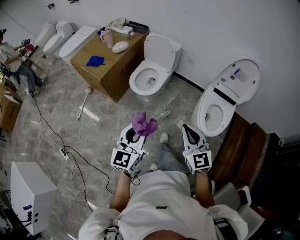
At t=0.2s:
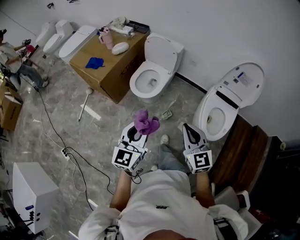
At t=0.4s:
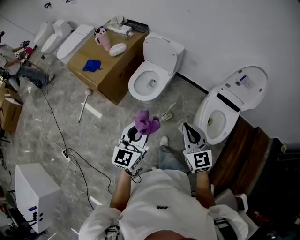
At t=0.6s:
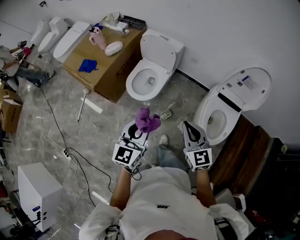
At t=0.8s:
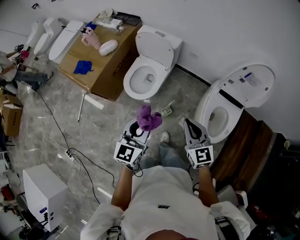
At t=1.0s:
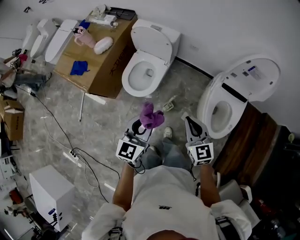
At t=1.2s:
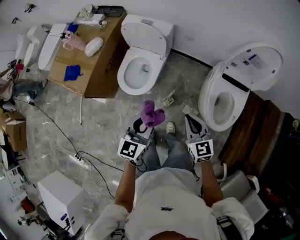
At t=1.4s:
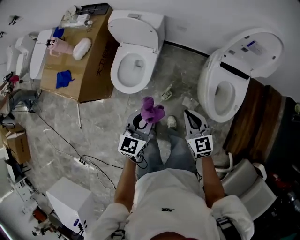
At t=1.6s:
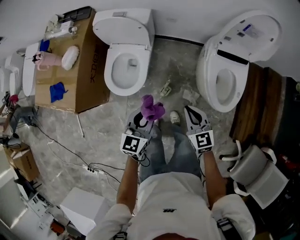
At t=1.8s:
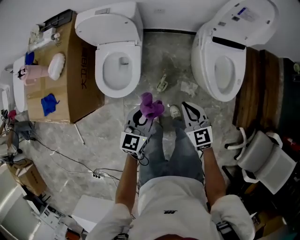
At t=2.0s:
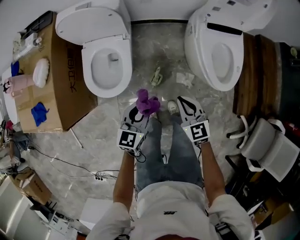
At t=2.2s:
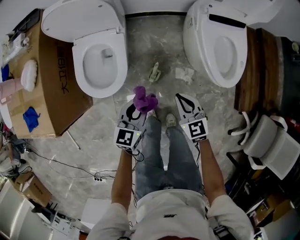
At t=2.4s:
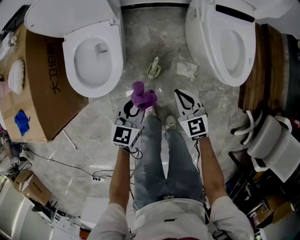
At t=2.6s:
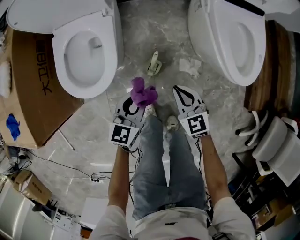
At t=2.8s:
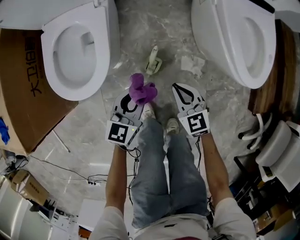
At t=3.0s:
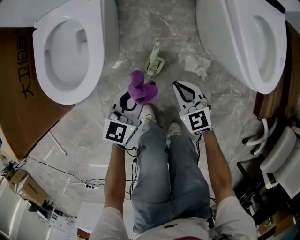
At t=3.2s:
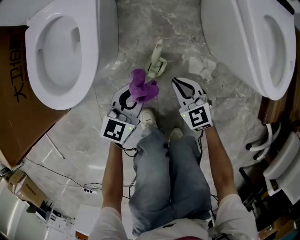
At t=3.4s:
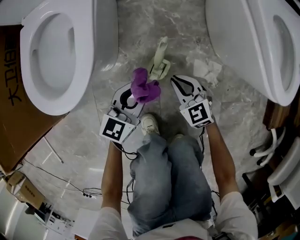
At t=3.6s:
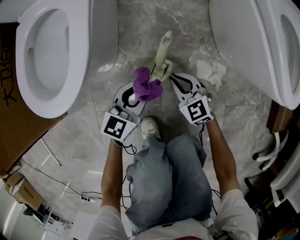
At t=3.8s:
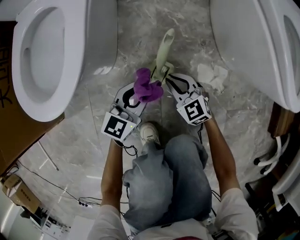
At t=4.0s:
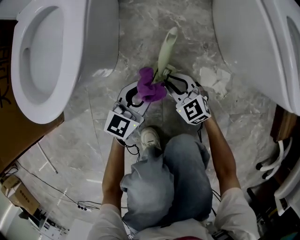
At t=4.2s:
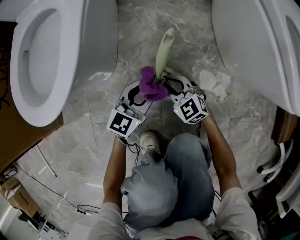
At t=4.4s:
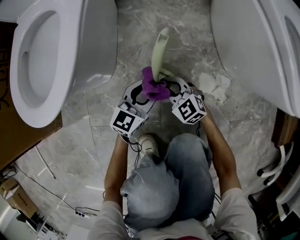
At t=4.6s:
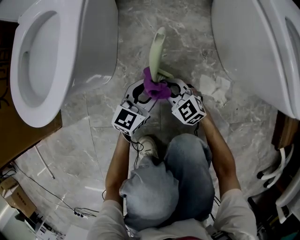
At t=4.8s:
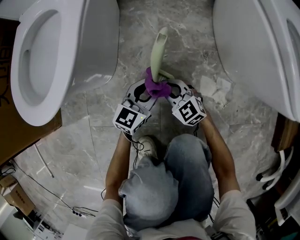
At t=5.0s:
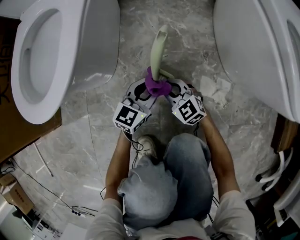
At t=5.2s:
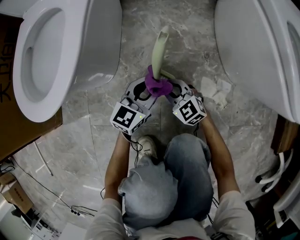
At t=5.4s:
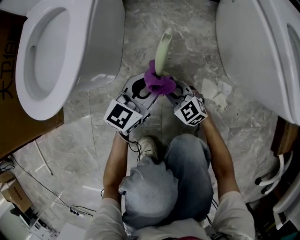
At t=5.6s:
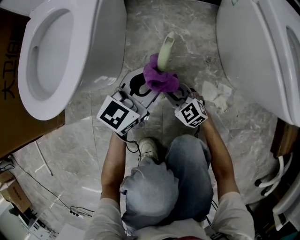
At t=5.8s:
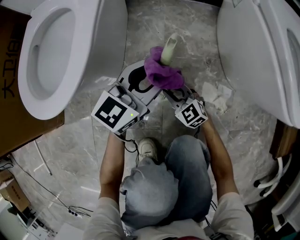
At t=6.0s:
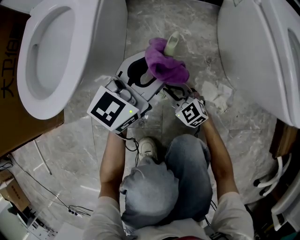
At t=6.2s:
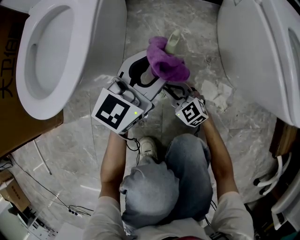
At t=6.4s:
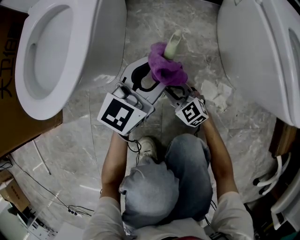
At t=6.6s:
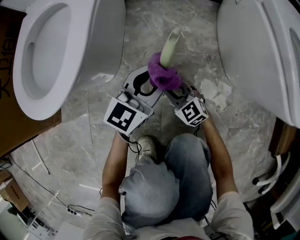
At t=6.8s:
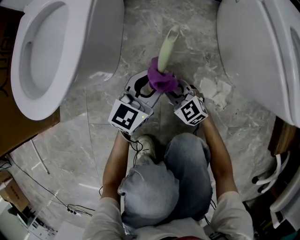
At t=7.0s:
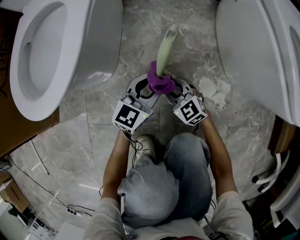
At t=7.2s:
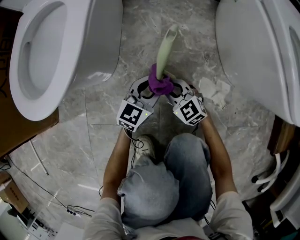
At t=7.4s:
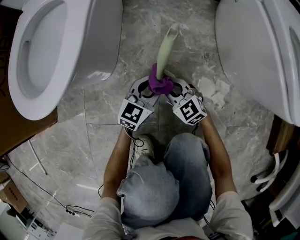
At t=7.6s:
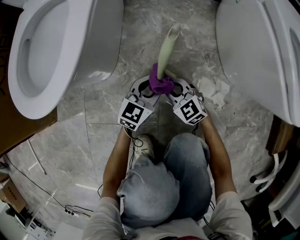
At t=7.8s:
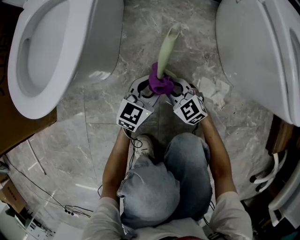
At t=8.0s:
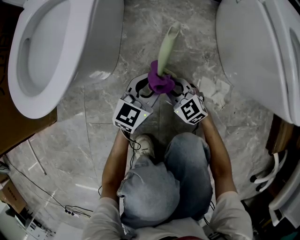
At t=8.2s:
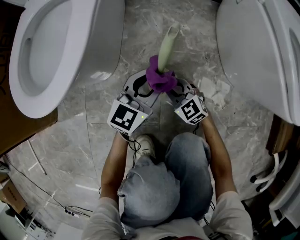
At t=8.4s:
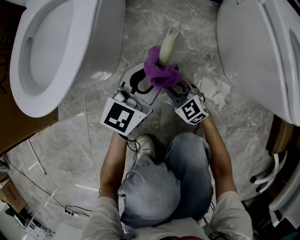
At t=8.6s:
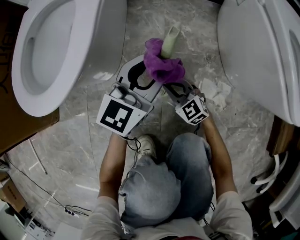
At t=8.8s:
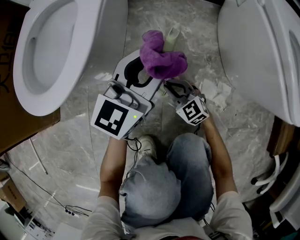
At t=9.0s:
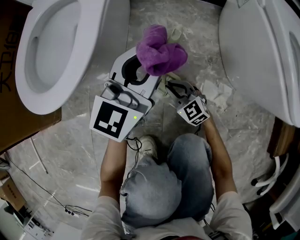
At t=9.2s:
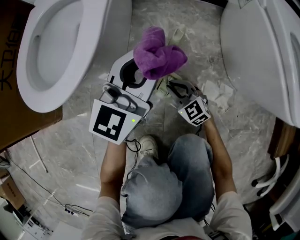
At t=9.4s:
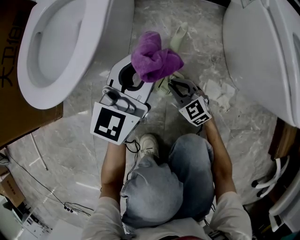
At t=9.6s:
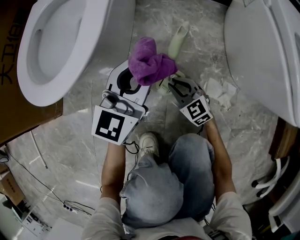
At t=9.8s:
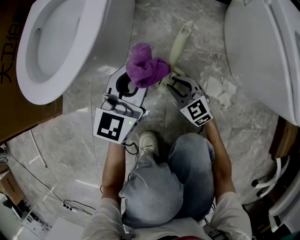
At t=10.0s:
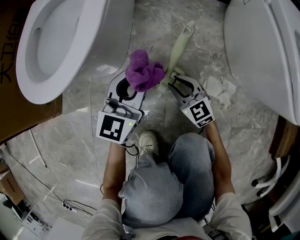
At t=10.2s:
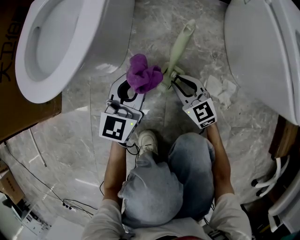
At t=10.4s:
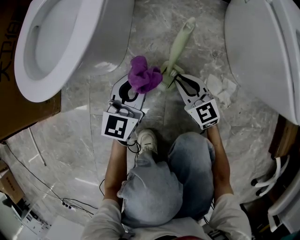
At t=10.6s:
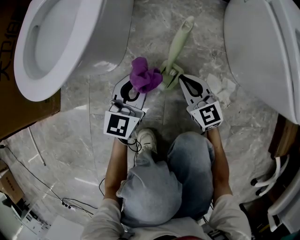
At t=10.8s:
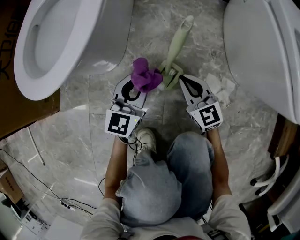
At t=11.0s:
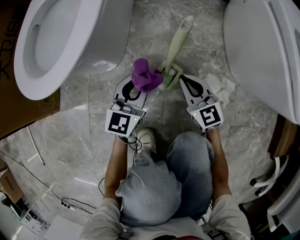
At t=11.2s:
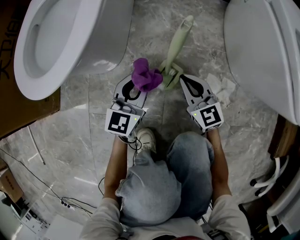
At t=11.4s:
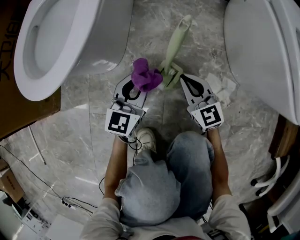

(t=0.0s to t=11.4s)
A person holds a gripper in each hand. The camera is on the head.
t=0.0s - t=1.4s: The grippers both shift forward and downward by roughly 35 cm. The right gripper turns by about 20 degrees. Meanwhile the left gripper turns by approximately 20 degrees.
t=1.4s - t=2.8s: Both grippers travel together downward, about 50 cm.
t=2.8s - t=4.2s: Both grippers travel together downward, roughly 30 cm. The right gripper changes its angle by about 20 degrees.
t=4.2s - t=5.6s: The left gripper shifts some 10 cm upward.
t=5.6s - t=7.2s: The left gripper heads downward, covering about 15 cm.
t=7.2s - t=8.6s: The left gripper heads upward, covering some 15 cm.
t=8.6s - t=10.0s: The left gripper is displaced to the left by roughly 5 cm.
t=10.0s - t=11.4s: The right gripper ends up approximately 5 cm from where it was, and closes up; the left gripper shifts about 5 cm downward.

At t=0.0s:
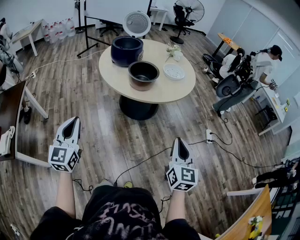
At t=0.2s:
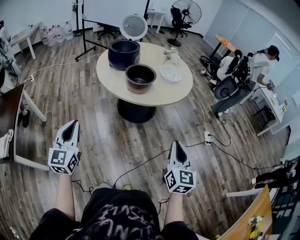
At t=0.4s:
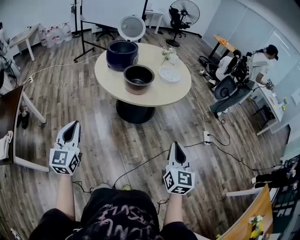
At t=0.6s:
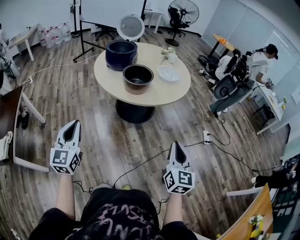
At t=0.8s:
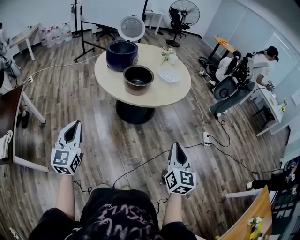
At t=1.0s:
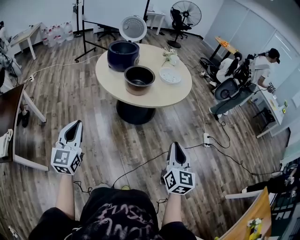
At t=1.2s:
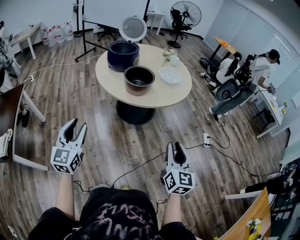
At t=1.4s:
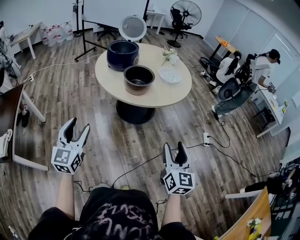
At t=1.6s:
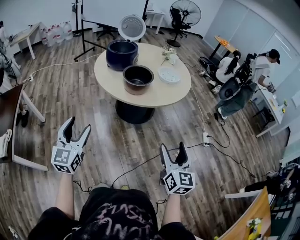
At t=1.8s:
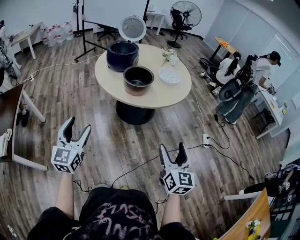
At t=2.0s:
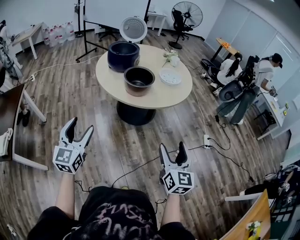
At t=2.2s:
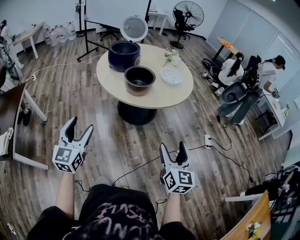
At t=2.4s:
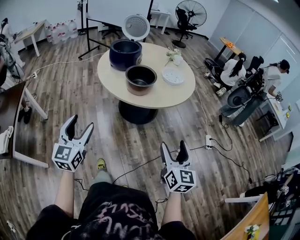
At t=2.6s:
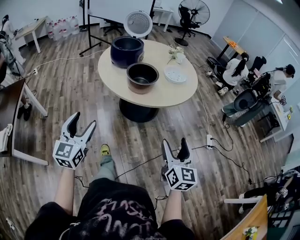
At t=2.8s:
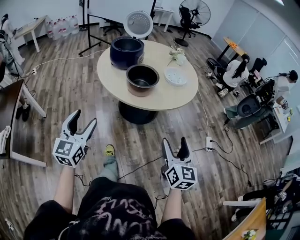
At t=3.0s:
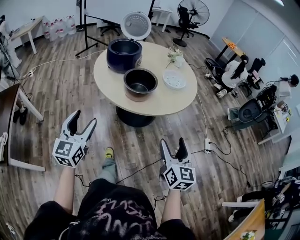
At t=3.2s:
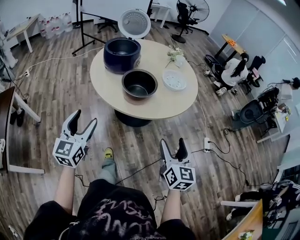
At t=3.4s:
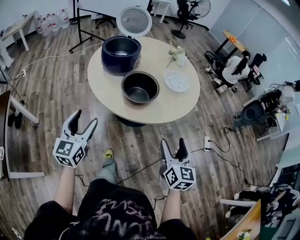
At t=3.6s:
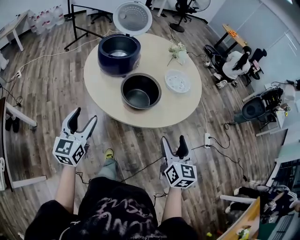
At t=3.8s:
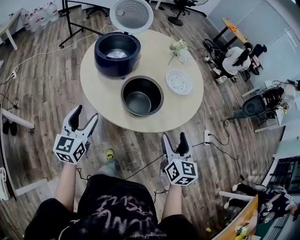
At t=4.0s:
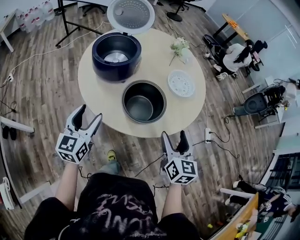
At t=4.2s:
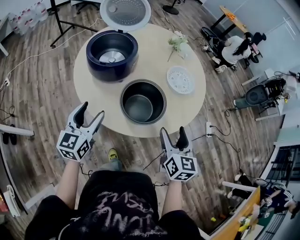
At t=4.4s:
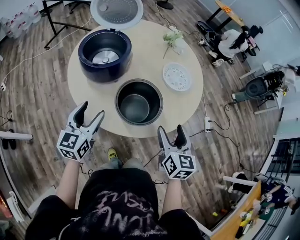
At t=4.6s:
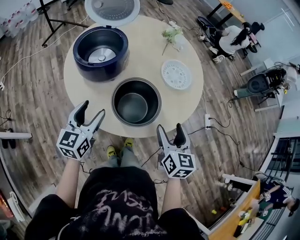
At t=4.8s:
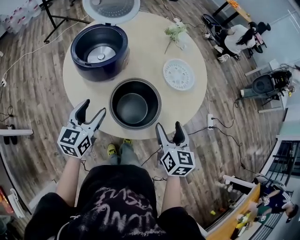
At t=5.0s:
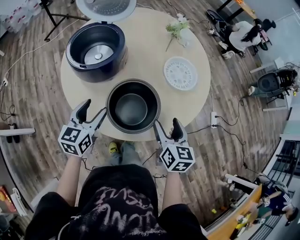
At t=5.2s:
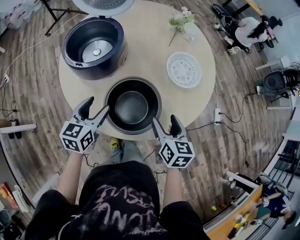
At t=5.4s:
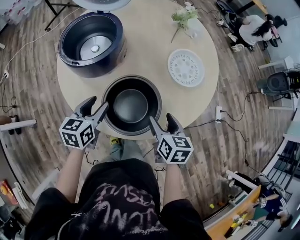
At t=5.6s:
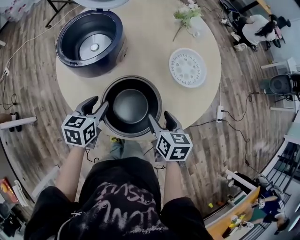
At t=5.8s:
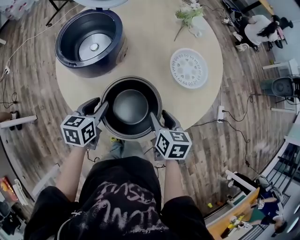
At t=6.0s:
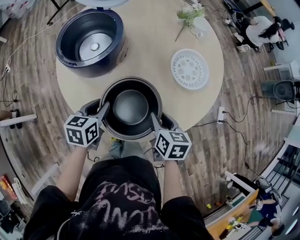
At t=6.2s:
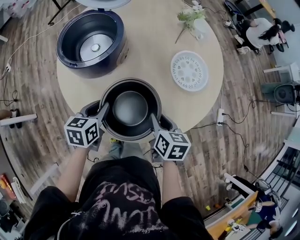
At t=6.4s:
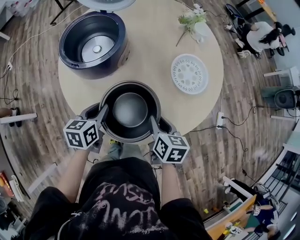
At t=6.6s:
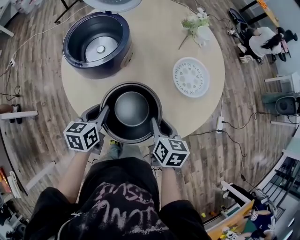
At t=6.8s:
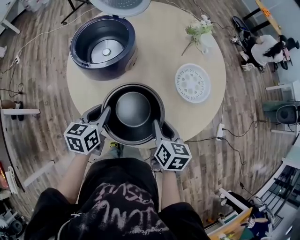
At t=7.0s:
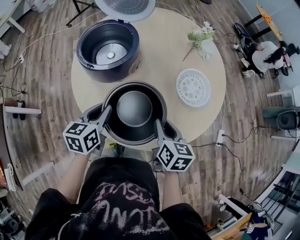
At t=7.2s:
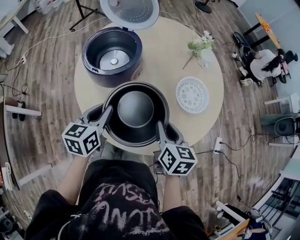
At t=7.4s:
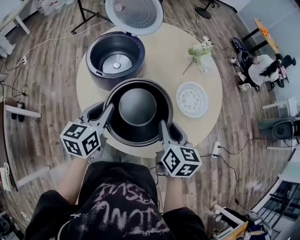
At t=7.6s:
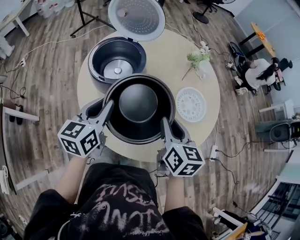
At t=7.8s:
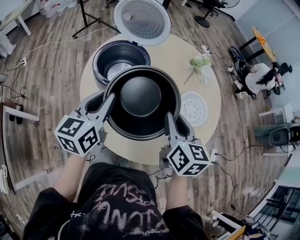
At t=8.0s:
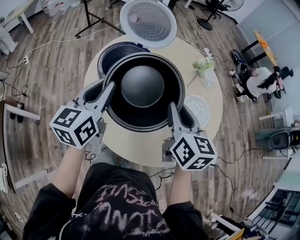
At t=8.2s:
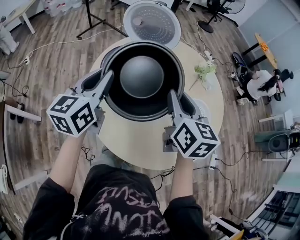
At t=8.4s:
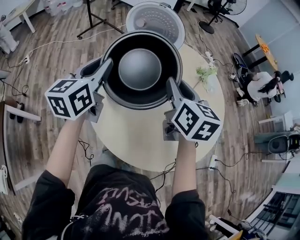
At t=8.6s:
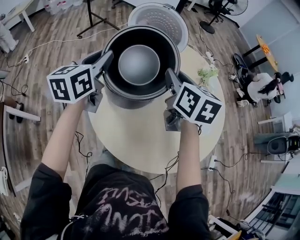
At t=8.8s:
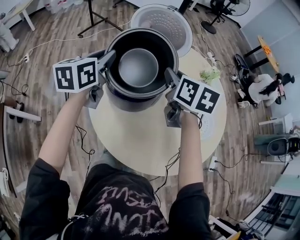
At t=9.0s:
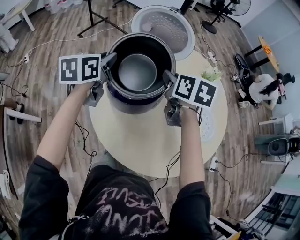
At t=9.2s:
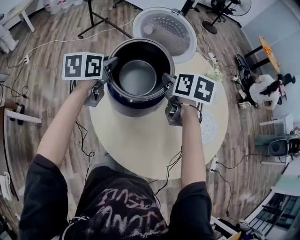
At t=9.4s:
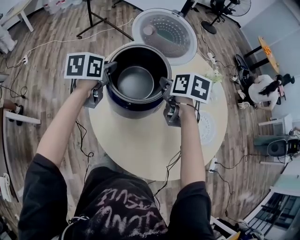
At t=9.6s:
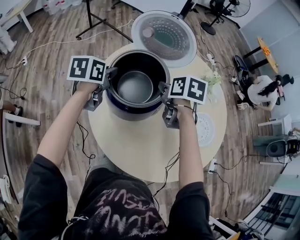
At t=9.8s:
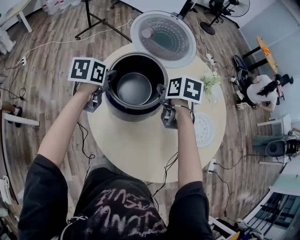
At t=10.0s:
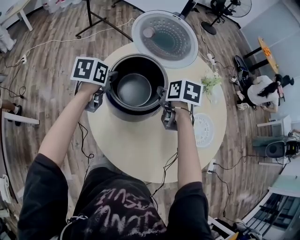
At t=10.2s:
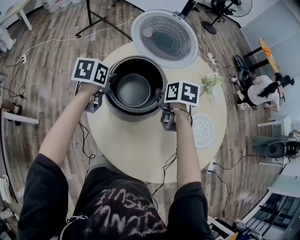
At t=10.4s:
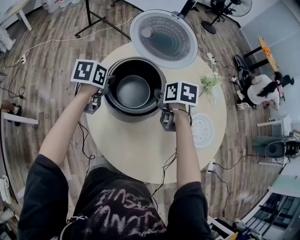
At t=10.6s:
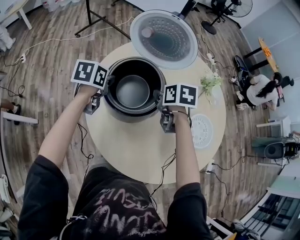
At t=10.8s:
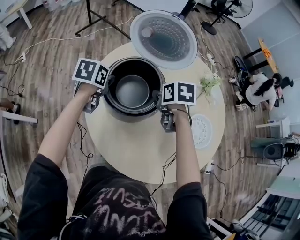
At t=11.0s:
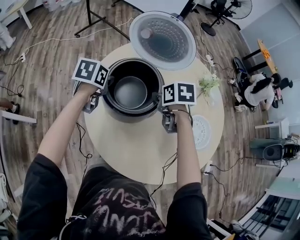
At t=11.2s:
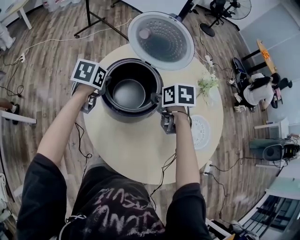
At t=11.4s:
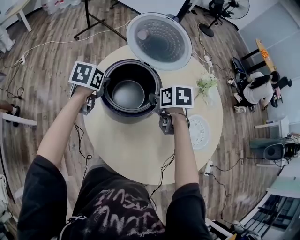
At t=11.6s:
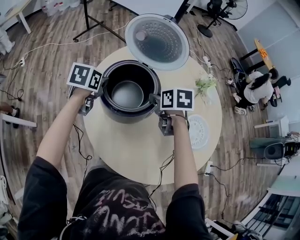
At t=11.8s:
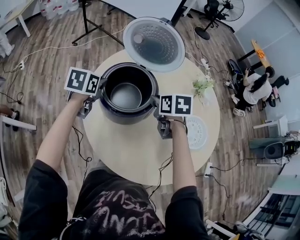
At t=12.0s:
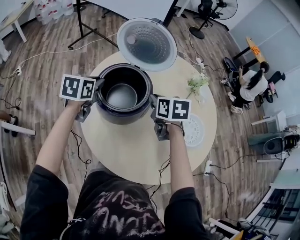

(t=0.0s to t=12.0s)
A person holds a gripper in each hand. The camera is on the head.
t=0.0s - t=1.6s: The left gripper opens; the right gripper opens.
t=1.6s - t=3.0s: Both grippers move forward, some 10 cm.
t=3.0s - t=4.4s: The two grippers go about 30 cm forward. The left gripper changes its angle by about 20 degrees.
t=4.4s - t=6.0s: The right gripper heads downward and forward, covering some 20 cm, turns by roughly 30 degrees, and closes up; the left gripper moves downward, forward and to the right, some 15 cm, swivels some 30 degrees, and closes.
t=6.0s - t=7.6s: The grippers both shift upward by some 15 cm. The left gripper swivels roughly 30 degrees. The right gripper turns by some 20 degrees.
t=7.6s - t=9.0s: Both grippers move forward and to the left, approximately 25 cm.
t=9.0s - t=10.4s: Both grippers travel together downward, roughly 10 cm. The left gripper rotates roughly 20 degrees. The right gripper rotates roughly 20 degrees.
t=10.4s - t=12.0s: The left gripper shifts approximately 5 cm upward. The right gripper shifts by about 5 cm.
